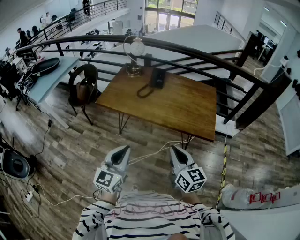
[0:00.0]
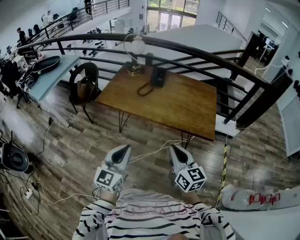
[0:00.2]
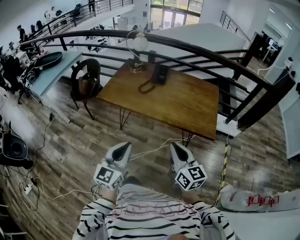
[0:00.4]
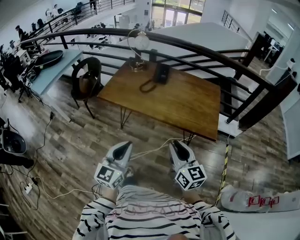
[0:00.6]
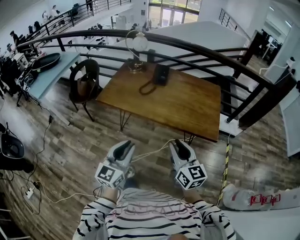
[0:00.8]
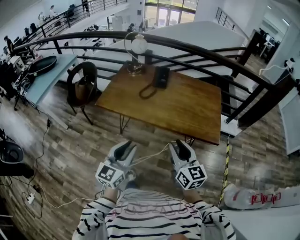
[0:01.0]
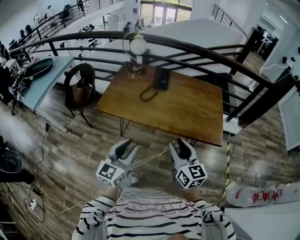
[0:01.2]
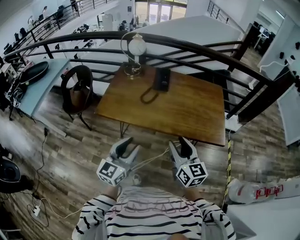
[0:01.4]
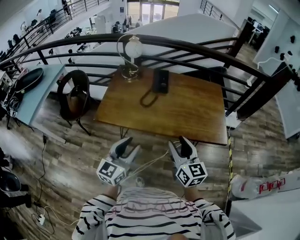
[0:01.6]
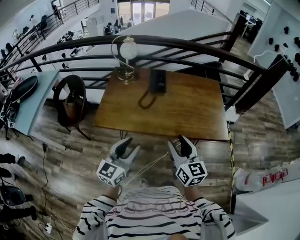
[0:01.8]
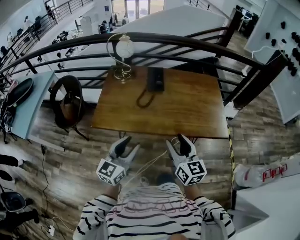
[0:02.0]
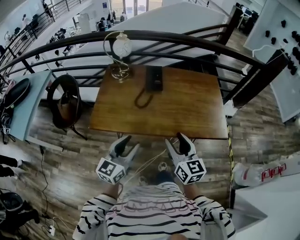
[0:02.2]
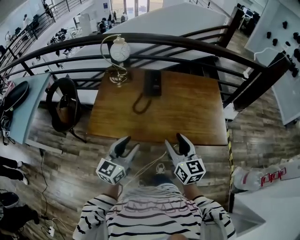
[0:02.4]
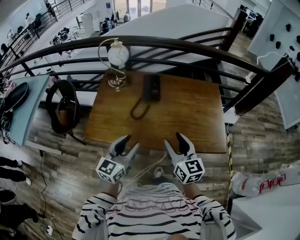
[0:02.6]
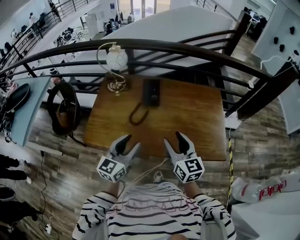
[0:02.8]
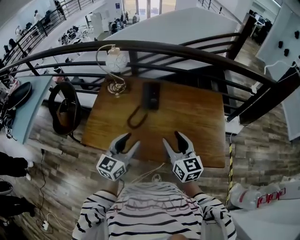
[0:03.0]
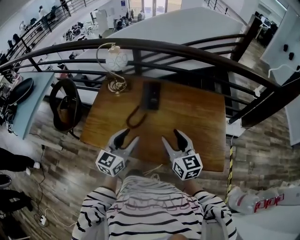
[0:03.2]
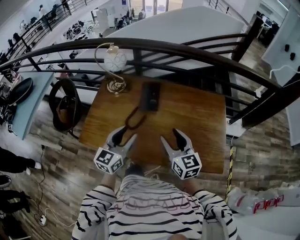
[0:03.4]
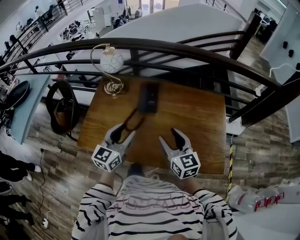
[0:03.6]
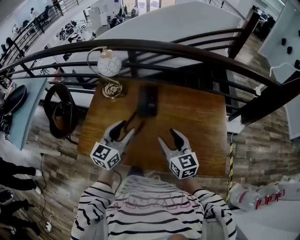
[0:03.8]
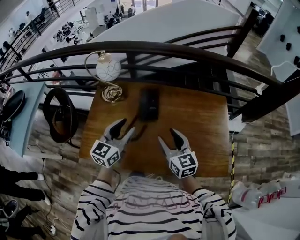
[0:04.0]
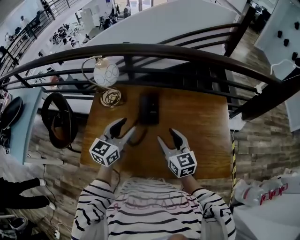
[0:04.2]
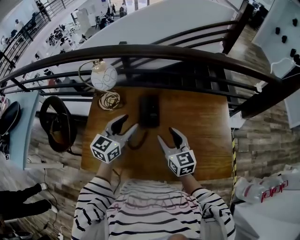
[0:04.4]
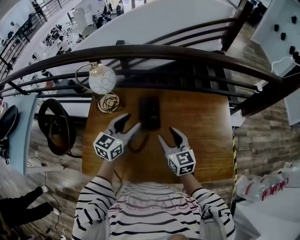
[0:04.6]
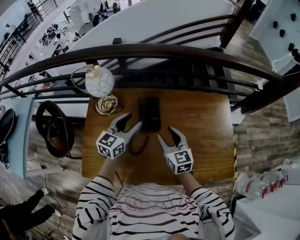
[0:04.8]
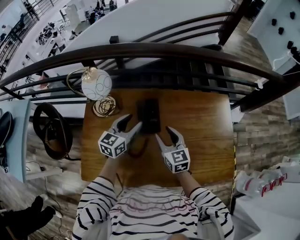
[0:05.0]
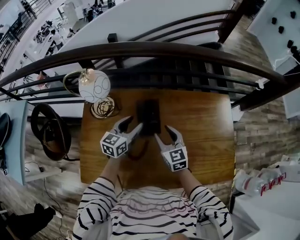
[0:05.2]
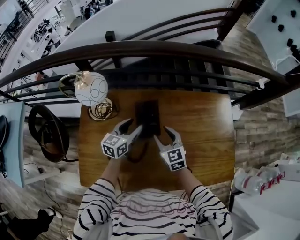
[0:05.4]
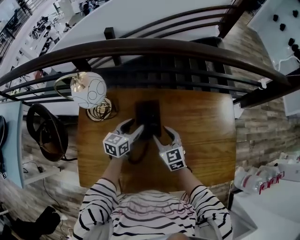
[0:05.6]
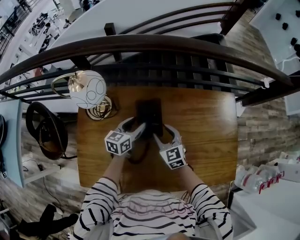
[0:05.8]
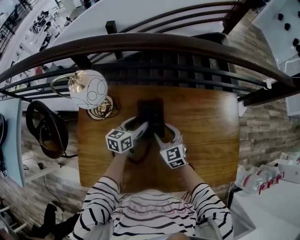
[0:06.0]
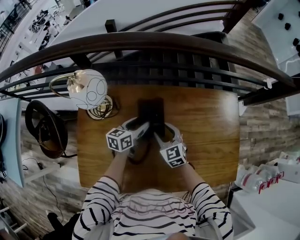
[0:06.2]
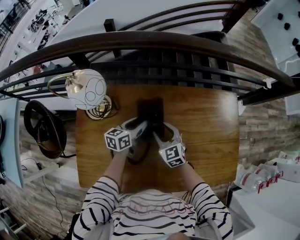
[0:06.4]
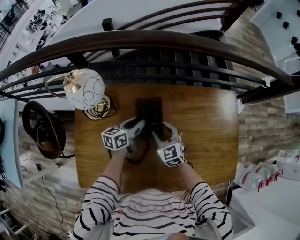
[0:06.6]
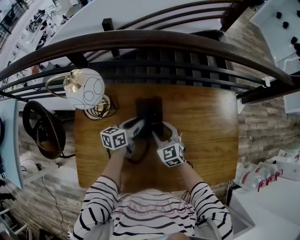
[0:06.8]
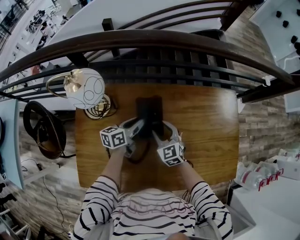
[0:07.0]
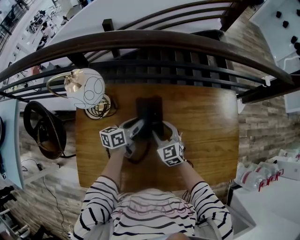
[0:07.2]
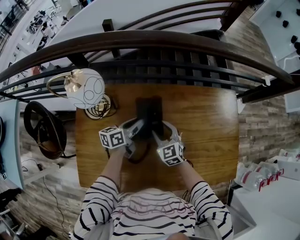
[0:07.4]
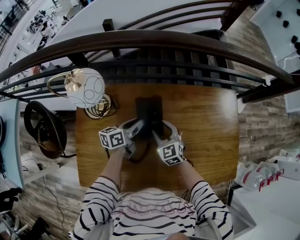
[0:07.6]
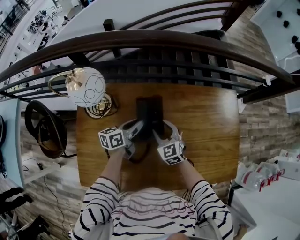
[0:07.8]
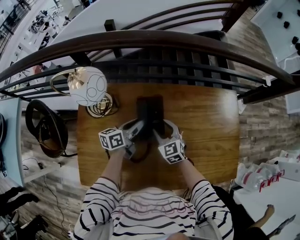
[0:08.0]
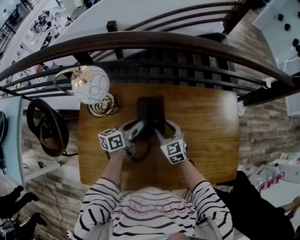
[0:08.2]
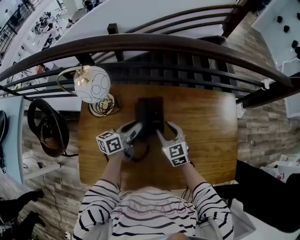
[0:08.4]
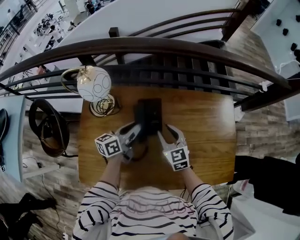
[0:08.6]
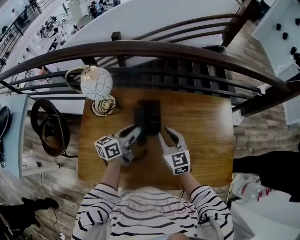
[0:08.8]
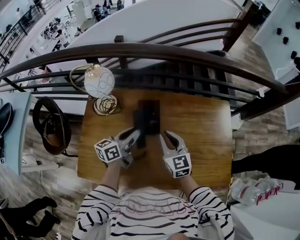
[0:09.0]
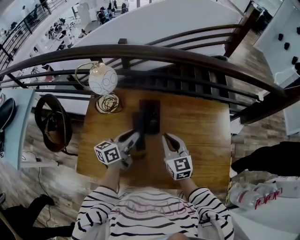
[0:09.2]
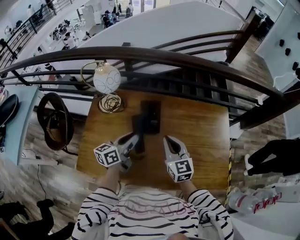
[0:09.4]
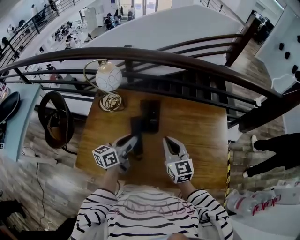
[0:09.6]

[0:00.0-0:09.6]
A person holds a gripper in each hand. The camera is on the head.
0:00.0 to 0:01.6: The two grippers go about 25 cm forward and to the left. The left gripper opens, while the right gripper opens.
0:01.6 to 0:03.2: The grippers both shift forward by about 30 cm.
0:03.2 to 0:04.8: The left gripper shifts about 30 cm forward, while the right gripper heads forward and downward, covering some 25 cm.
0:04.8 to 0:06.4: Both grippers travel together downward and forward, roughly 20 cm. The right gripper turns by about 20 degrees, while the left gripper turns by about 30 degrees.
0:06.4 to 0:08.0: The left gripper closes up.
0:08.0 to 0:09.6: The left gripper is displaced backward and upward by roughly 25 cm, while the right gripper is displaced upward, backward and to the right by roughly 25 cm, rotates about 20 degrees, and closes its fingers.

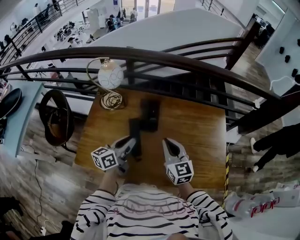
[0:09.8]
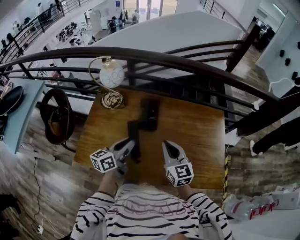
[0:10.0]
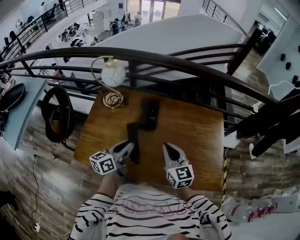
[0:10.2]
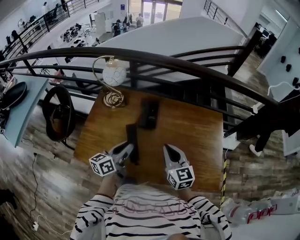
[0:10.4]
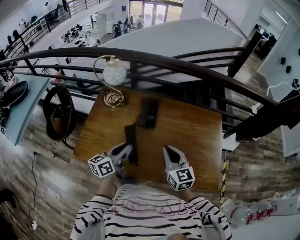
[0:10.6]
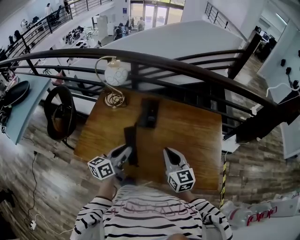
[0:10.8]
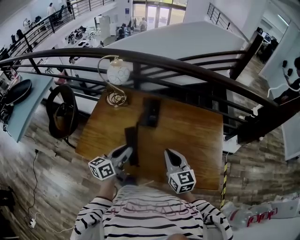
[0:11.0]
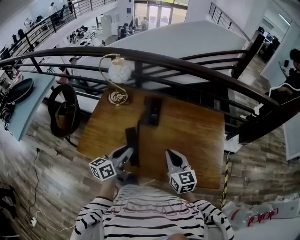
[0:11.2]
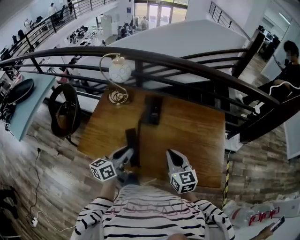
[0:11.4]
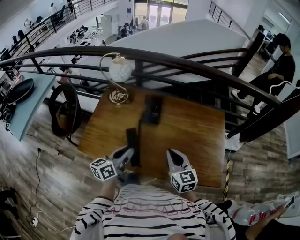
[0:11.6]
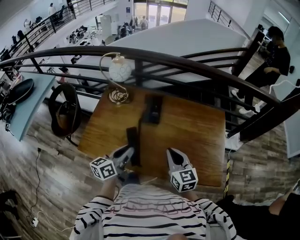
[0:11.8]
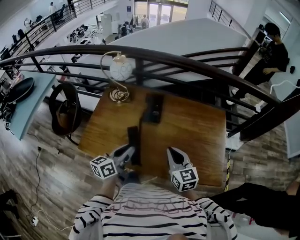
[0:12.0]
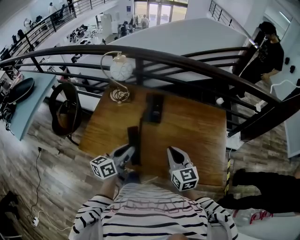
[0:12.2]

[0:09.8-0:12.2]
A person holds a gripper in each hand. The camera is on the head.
0:09.8 to 0:11.0: Both grippers move backward, some 10 cm.
0:11.0 to 0:12.2: The grippers move only a little.

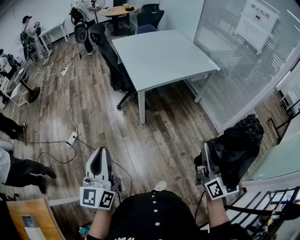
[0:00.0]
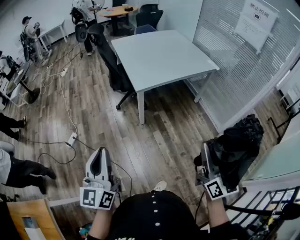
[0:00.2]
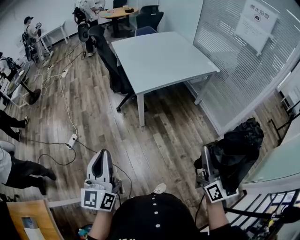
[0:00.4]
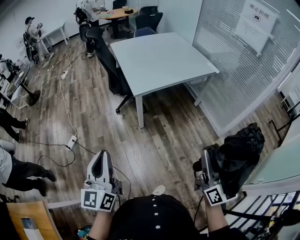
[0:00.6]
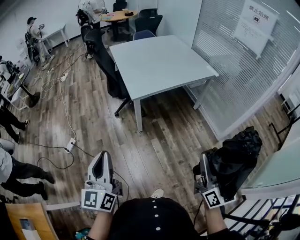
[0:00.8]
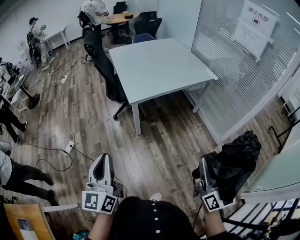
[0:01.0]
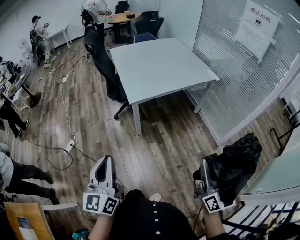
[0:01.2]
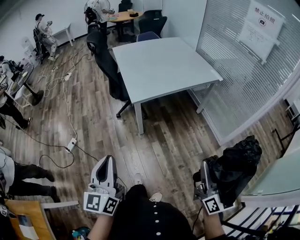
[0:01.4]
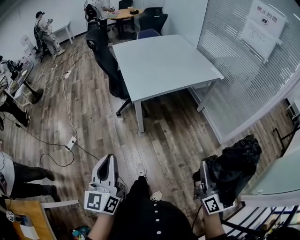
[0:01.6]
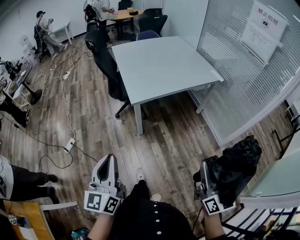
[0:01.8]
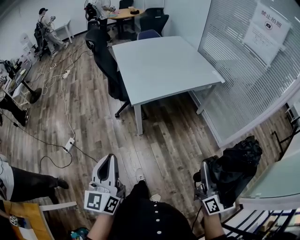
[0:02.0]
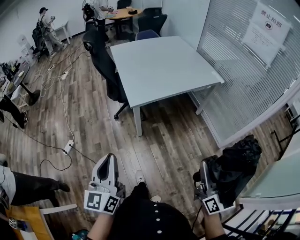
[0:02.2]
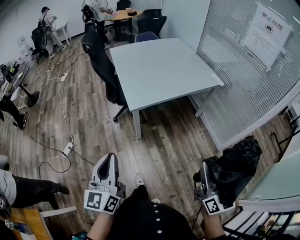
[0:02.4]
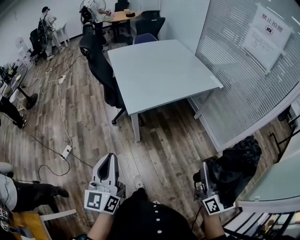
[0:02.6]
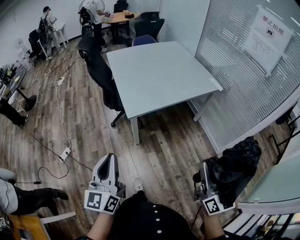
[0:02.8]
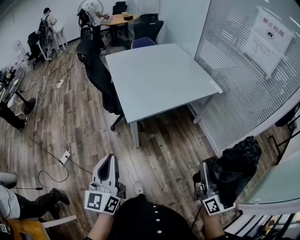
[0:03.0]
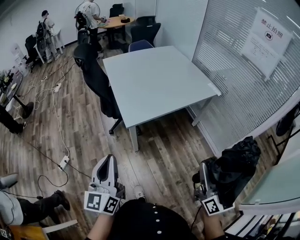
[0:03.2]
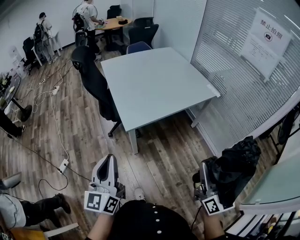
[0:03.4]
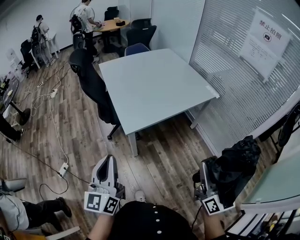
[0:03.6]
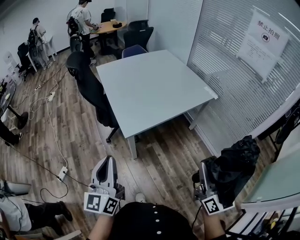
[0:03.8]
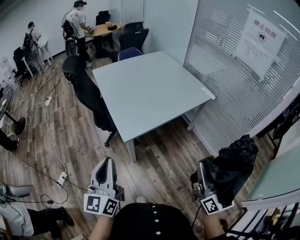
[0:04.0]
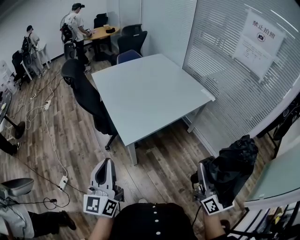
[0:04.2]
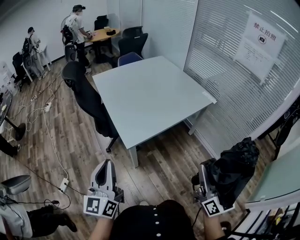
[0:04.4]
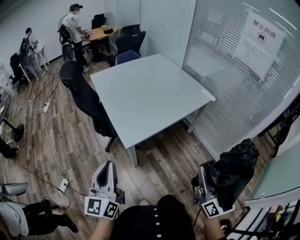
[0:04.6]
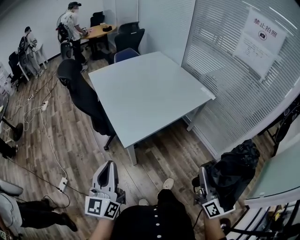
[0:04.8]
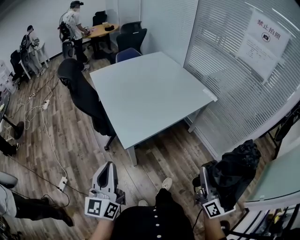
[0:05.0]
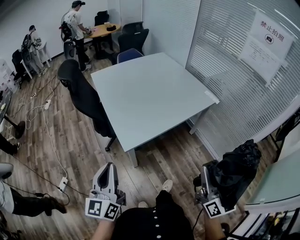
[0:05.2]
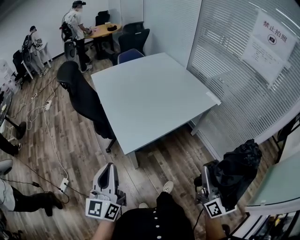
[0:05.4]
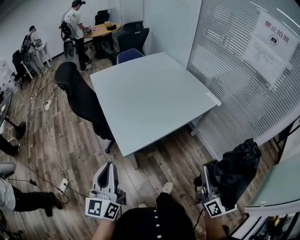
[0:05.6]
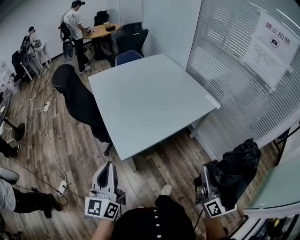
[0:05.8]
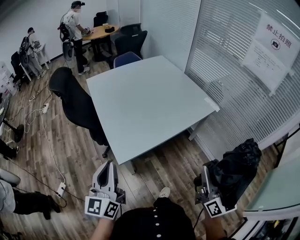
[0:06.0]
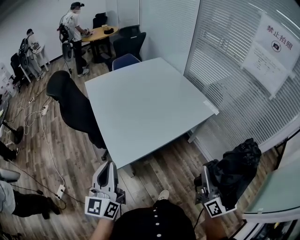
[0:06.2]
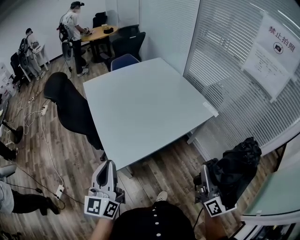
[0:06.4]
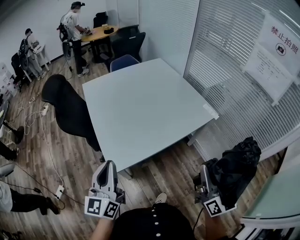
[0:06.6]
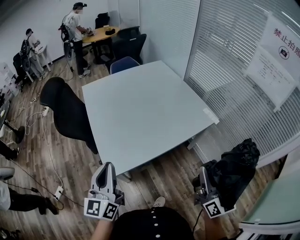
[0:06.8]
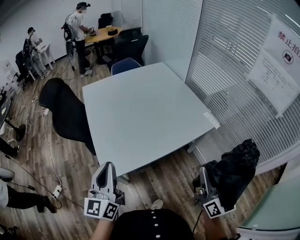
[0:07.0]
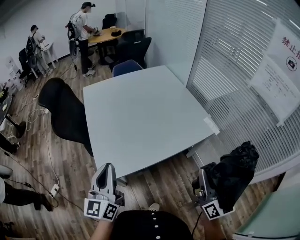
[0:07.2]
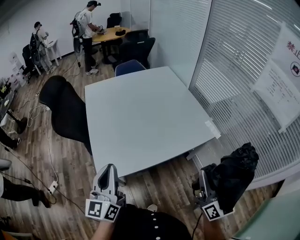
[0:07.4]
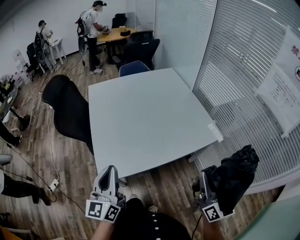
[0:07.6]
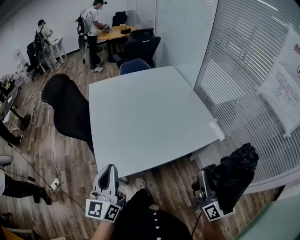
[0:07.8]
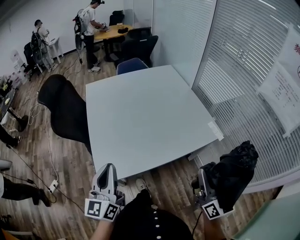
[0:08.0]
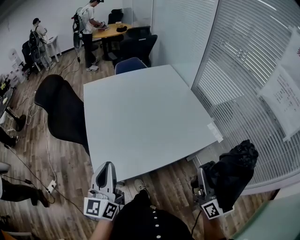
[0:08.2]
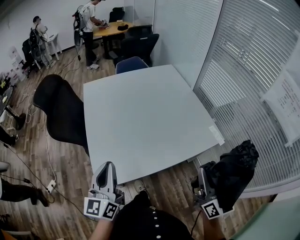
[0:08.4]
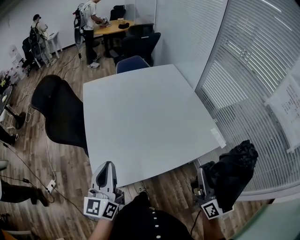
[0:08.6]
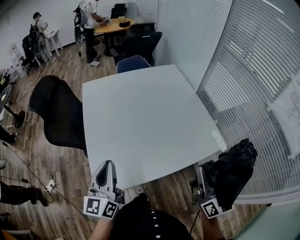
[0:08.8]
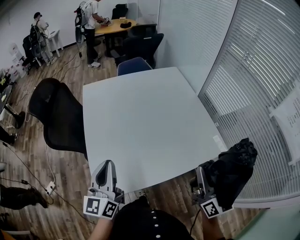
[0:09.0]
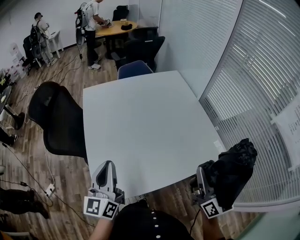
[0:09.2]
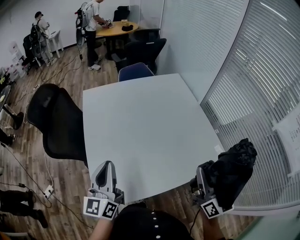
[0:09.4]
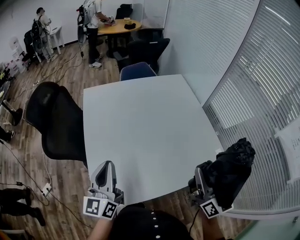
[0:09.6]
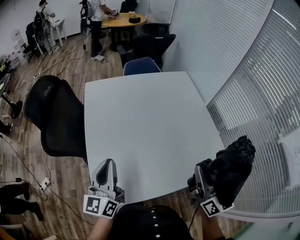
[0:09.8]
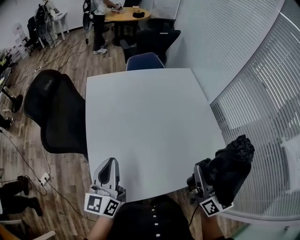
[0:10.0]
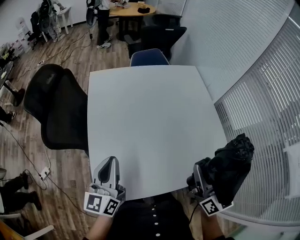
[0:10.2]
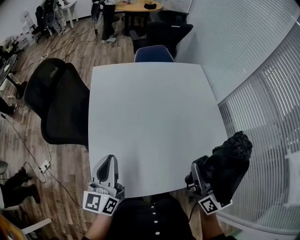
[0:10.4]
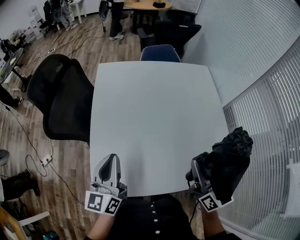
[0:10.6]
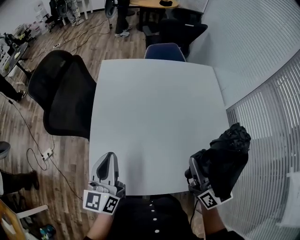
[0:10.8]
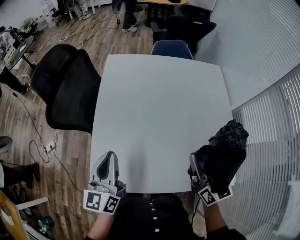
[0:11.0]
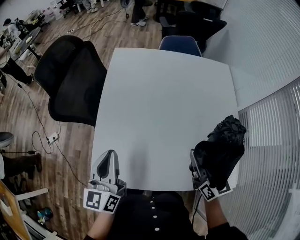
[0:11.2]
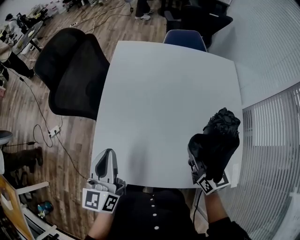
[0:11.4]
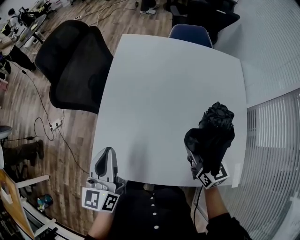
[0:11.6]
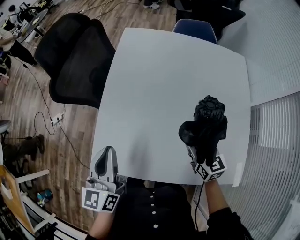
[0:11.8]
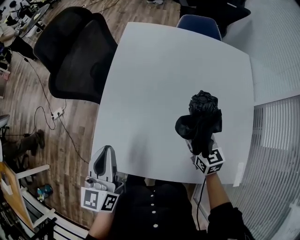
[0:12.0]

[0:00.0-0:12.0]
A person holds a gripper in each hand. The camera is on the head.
0:00.0 to 0:01.6: The right gripper travels to the right by roughly 10 cm; the left gripper travels to the right and forward by about 10 cm.
0:01.6 to 0:03.0: Both grippers travel together forward, some 15 cm.
0:03.0 to 0:04.4: Both grippers travel together forward and to the left, roughly 10 cm.
0:04.4 to 0:06.0: Both grippers move forward and to the right, about 15 cm.
0:06.0 to 0:07.6: The left gripper travels to the right and forward by some 15 cm. Meanwhile the right gripper goes some 20 cm forward and to the right.
0:07.6 to 0:09.0: The two grippers go approximately 15 cm forward.
0:09.0 to 0:10.4: The right gripper moves forward and to the left, some 15 cm, while the left gripper is displaced forward by about 10 cm.
0:10.4 to 0:12.0: The right gripper goes about 20 cm downward, and turns by about 40 degrees. Meanwhile the left gripper changes place by roughly 5 cm, and rotates roughly 20 degrees.
